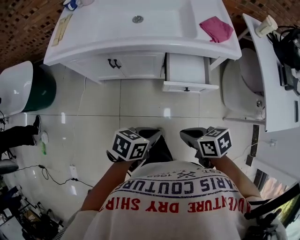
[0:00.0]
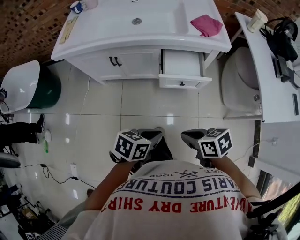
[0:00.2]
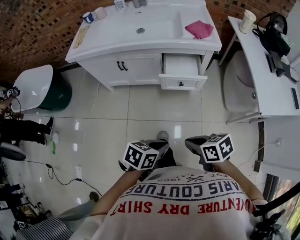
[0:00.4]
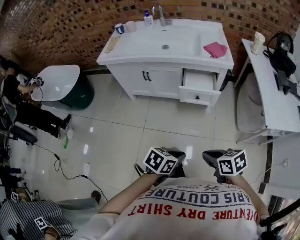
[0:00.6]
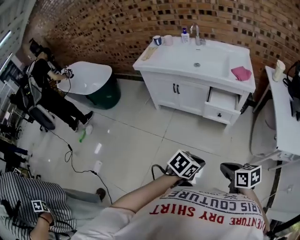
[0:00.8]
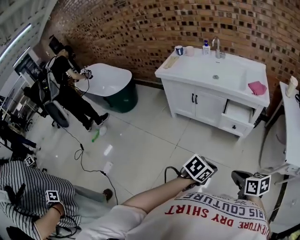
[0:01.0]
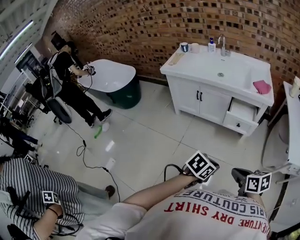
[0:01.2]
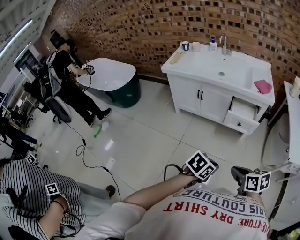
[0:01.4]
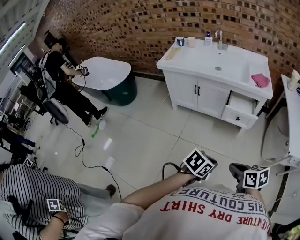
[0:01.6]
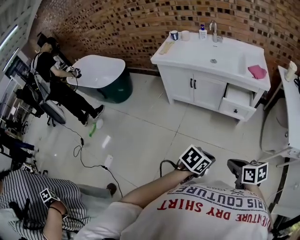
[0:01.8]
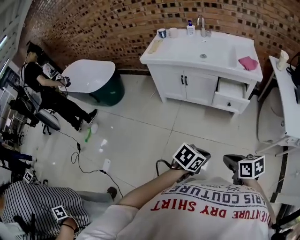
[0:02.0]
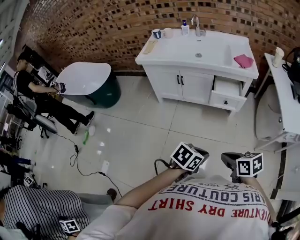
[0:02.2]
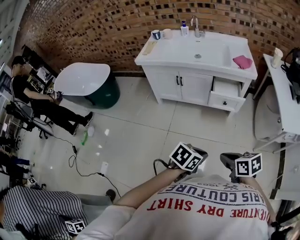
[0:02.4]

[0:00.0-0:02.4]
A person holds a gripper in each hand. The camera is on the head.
0:00.0 to 0:01.2: The right gripper changes place by about 30 cm, while the left gripper moves roughly 30 cm.
0:01.2 to 0:02.4: The right gripper ends up some 5 cm from where it was, while the left gripper ends up some 5 cm from where it was.

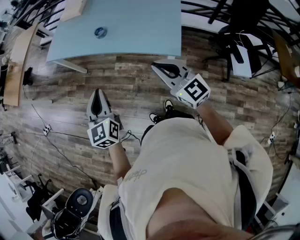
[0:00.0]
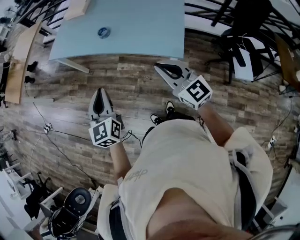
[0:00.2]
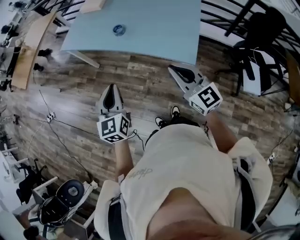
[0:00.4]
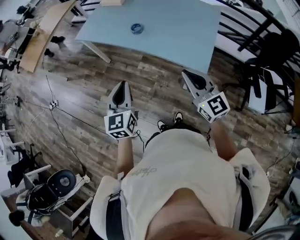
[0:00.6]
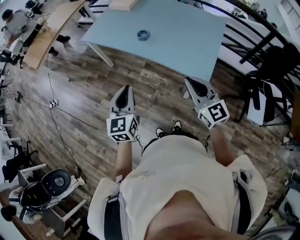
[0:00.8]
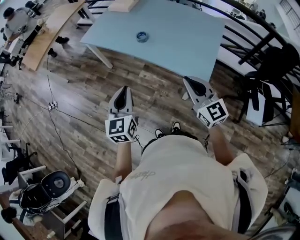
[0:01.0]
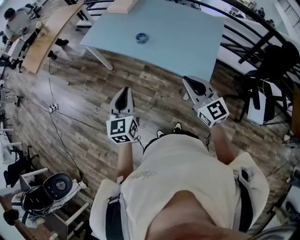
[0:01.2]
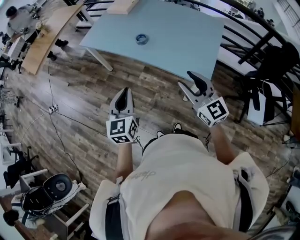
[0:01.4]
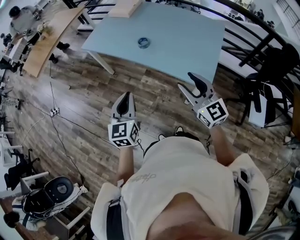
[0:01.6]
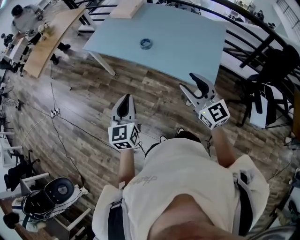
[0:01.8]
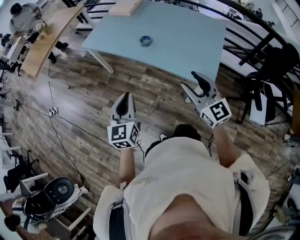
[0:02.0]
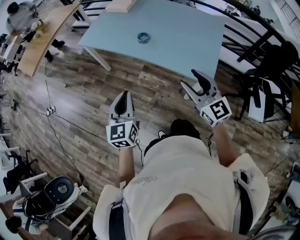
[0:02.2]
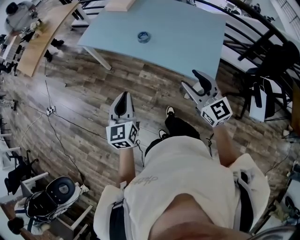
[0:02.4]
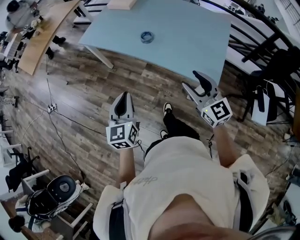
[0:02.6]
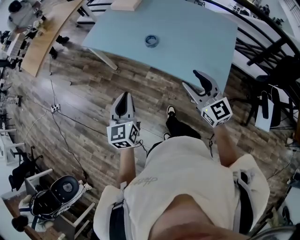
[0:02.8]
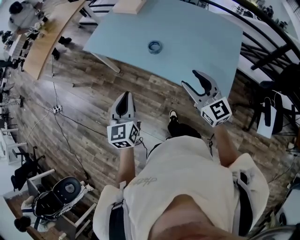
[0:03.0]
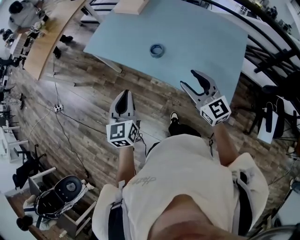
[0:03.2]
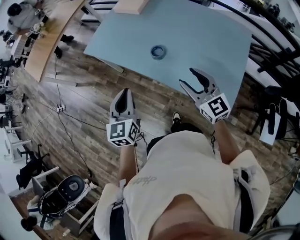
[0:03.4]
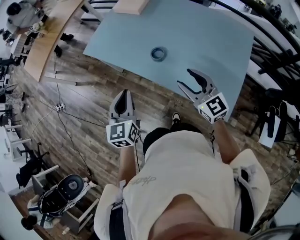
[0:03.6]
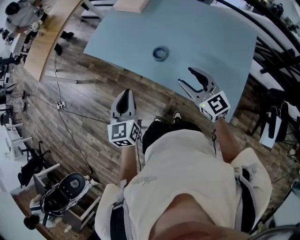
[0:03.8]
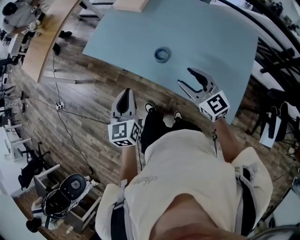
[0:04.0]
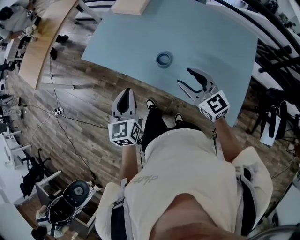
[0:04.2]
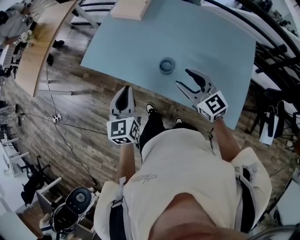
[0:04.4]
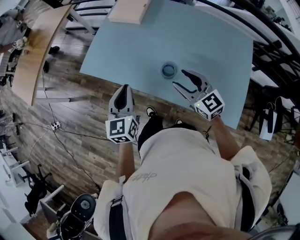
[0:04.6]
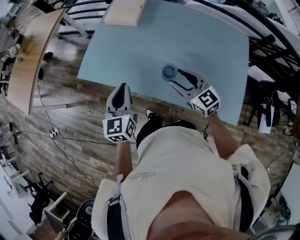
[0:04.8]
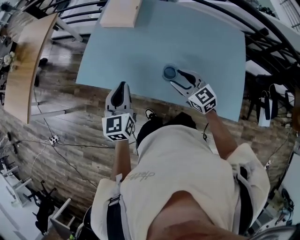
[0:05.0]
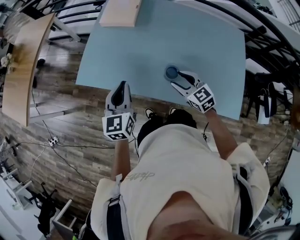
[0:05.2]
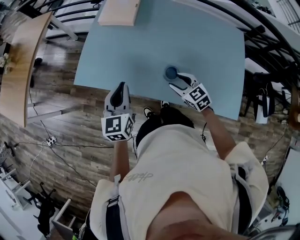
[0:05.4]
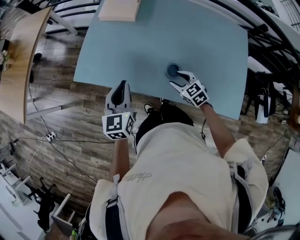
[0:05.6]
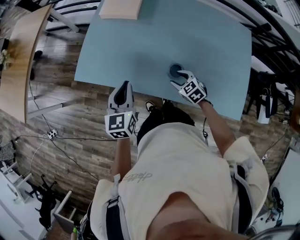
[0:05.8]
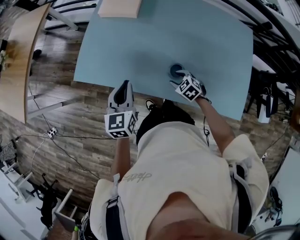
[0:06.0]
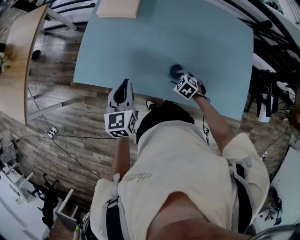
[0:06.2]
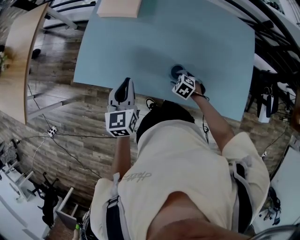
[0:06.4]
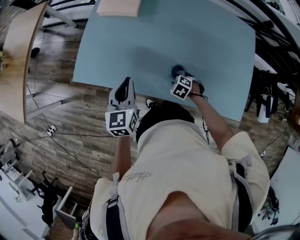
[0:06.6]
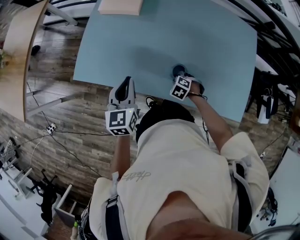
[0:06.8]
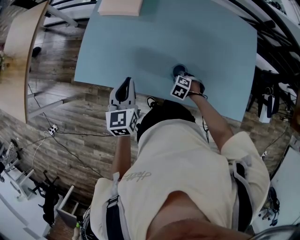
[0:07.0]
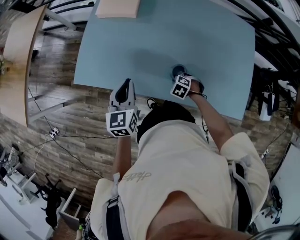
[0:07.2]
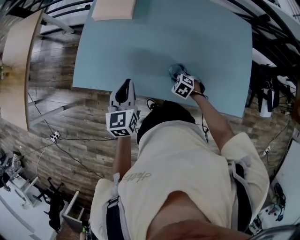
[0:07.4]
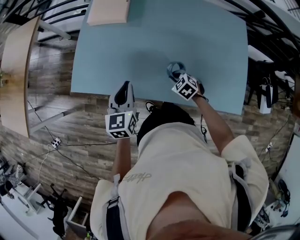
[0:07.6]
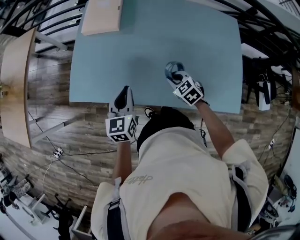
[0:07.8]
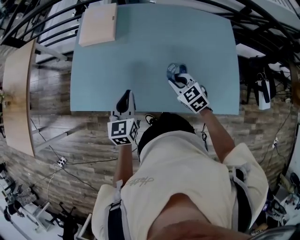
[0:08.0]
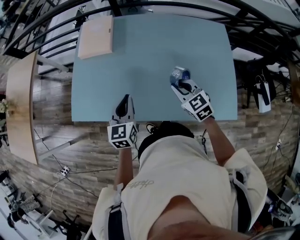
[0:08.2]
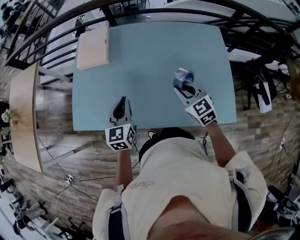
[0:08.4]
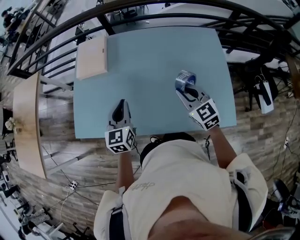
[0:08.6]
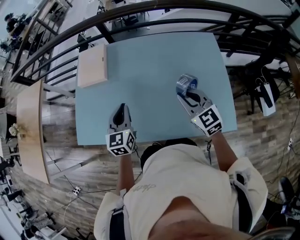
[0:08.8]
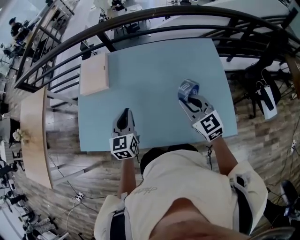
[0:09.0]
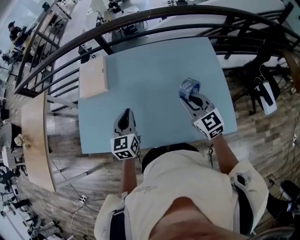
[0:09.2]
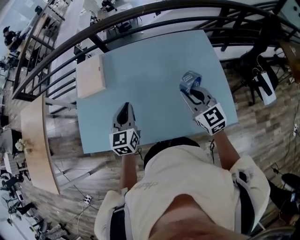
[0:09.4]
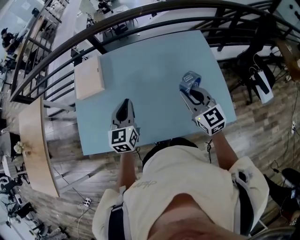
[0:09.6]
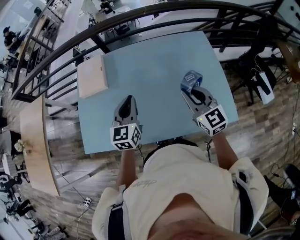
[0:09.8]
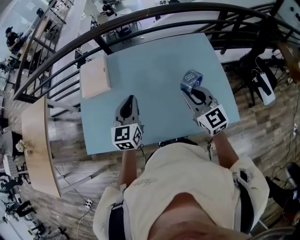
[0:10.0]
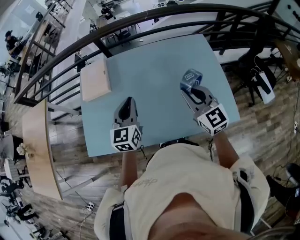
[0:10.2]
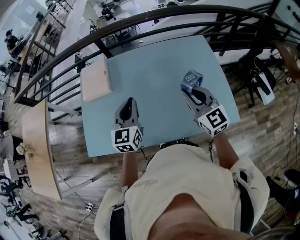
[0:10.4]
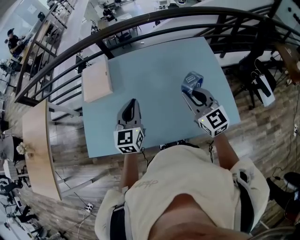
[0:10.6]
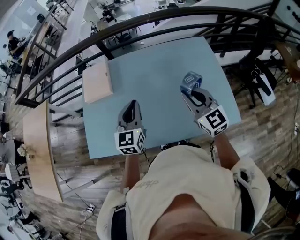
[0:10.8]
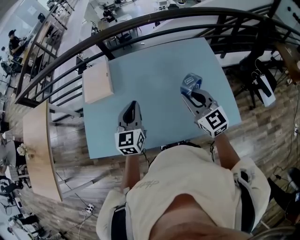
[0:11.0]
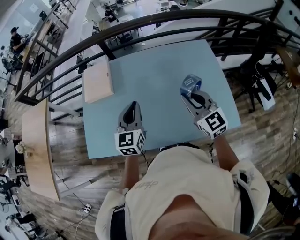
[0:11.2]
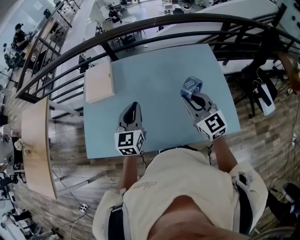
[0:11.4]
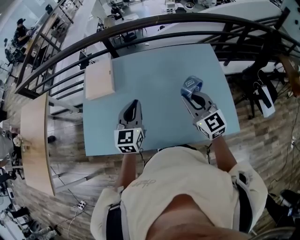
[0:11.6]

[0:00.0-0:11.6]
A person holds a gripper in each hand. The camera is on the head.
0:00.0 to 0:01.4: The right gripper opens its fingers.
0:01.4 to 0:02.8: Both grippers travel together forward, some 10 cm.
0:02.8 to 0:04.4: Both grippers travel together forward, about 30 cm.
0:04.4 to 0:05.8: The left gripper heads forward and downward, covering about 15 cm, while the right gripper is displaced downward and forward by about 25 cm, and tilts its fingers some 40 degrees downward.
0:05.8 to 0:07.2: The right gripper heads downward, covering approximately 10 cm, changes its angle by roughly 30 degrees, and closes its fingers.
0:07.2 to 0:08.8: The left gripper changes place by some 20 cm; the right gripper moves upward, approximately 35 cm, and tips its fingers upward by roughly 60 degrees.
0:08.8 to 0:10.2: Both grippers move upward, about 5 cm.
0:10.2 to 0:11.6: There are only small adjustments of the grippers.

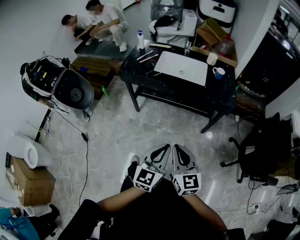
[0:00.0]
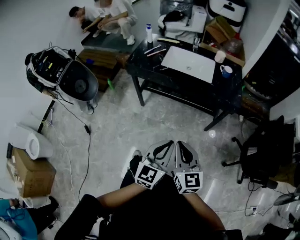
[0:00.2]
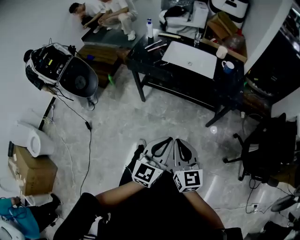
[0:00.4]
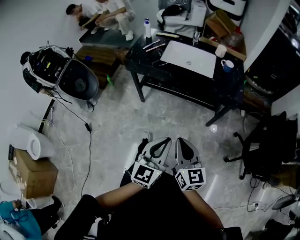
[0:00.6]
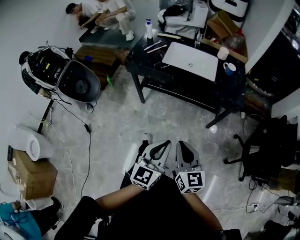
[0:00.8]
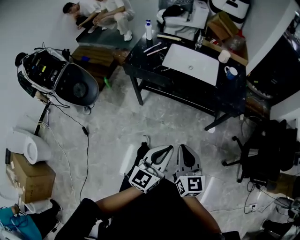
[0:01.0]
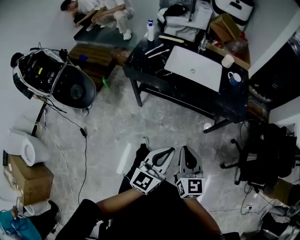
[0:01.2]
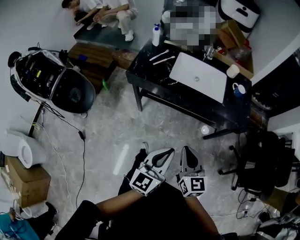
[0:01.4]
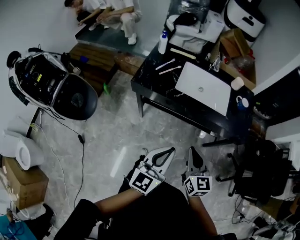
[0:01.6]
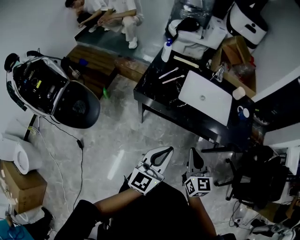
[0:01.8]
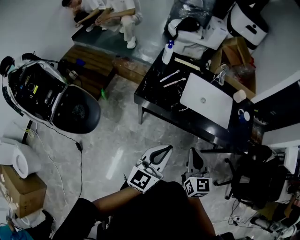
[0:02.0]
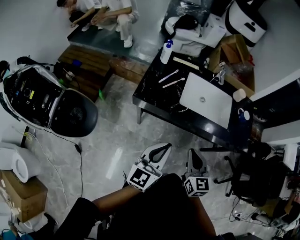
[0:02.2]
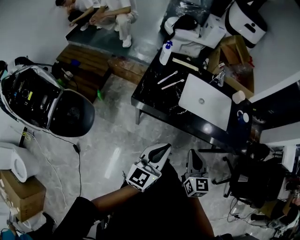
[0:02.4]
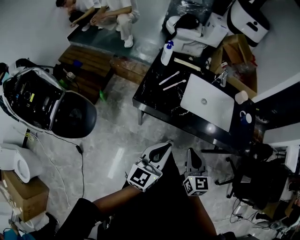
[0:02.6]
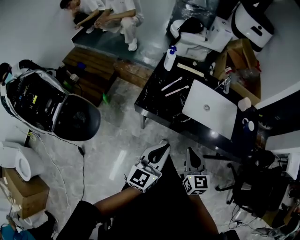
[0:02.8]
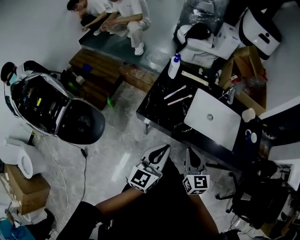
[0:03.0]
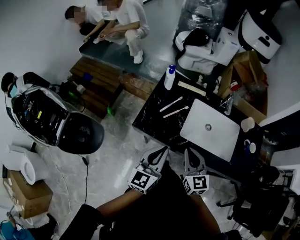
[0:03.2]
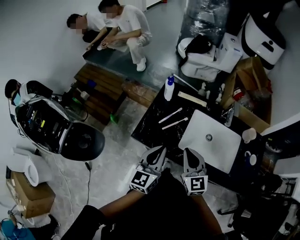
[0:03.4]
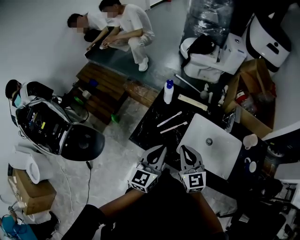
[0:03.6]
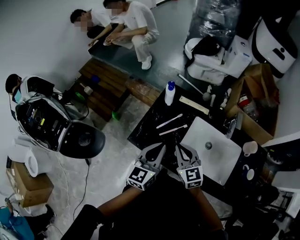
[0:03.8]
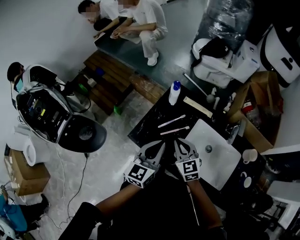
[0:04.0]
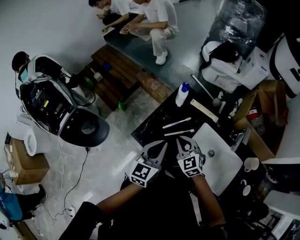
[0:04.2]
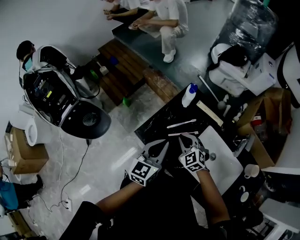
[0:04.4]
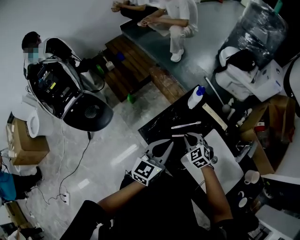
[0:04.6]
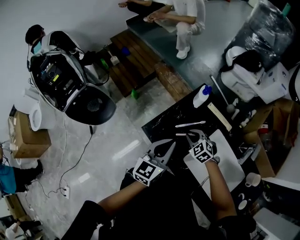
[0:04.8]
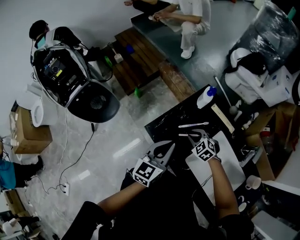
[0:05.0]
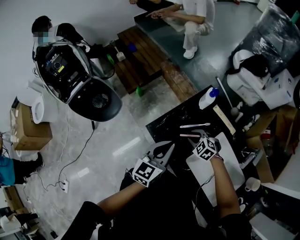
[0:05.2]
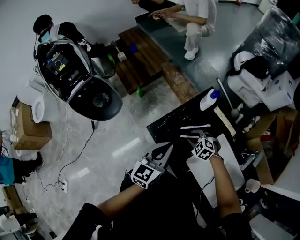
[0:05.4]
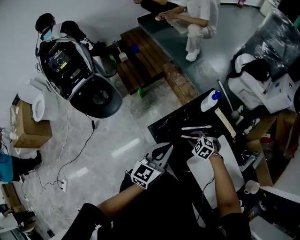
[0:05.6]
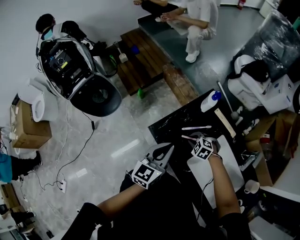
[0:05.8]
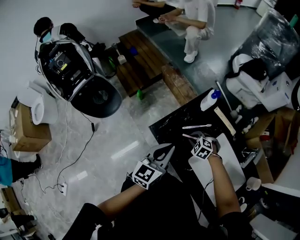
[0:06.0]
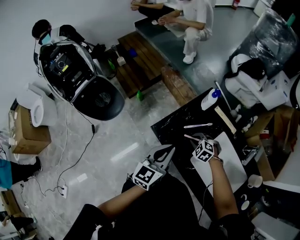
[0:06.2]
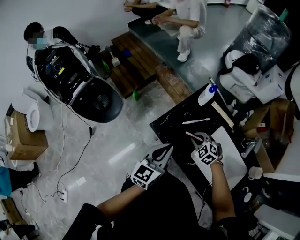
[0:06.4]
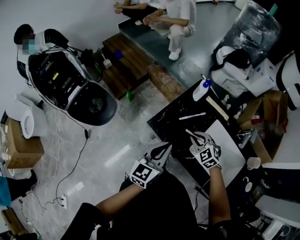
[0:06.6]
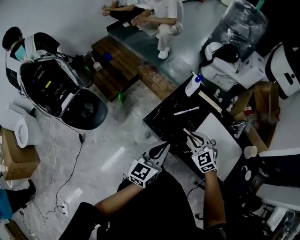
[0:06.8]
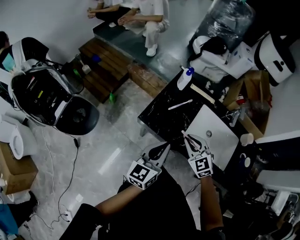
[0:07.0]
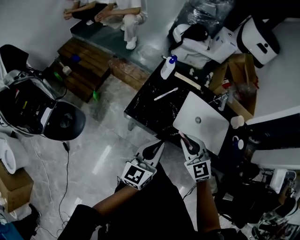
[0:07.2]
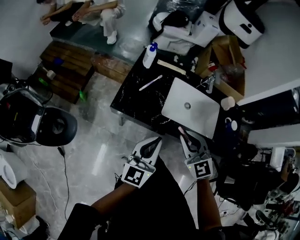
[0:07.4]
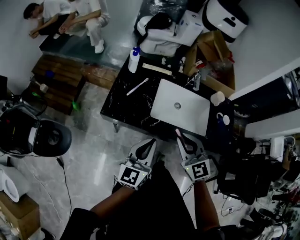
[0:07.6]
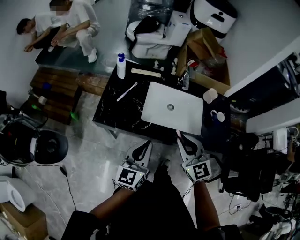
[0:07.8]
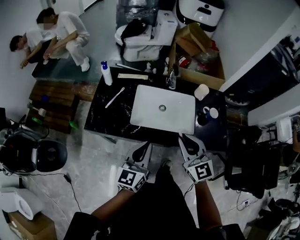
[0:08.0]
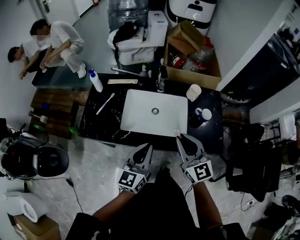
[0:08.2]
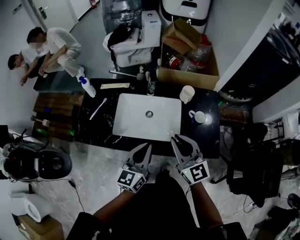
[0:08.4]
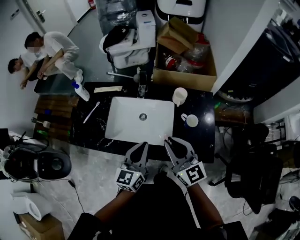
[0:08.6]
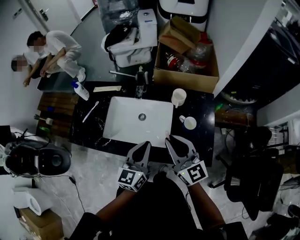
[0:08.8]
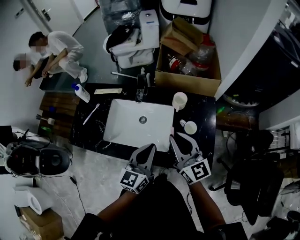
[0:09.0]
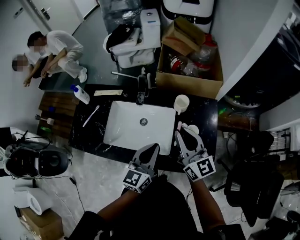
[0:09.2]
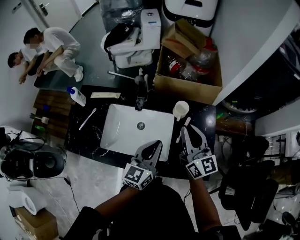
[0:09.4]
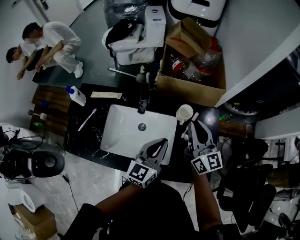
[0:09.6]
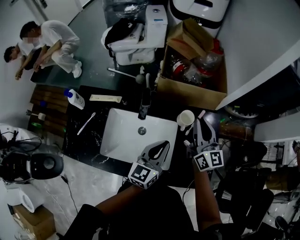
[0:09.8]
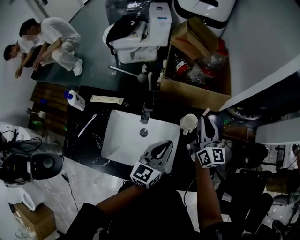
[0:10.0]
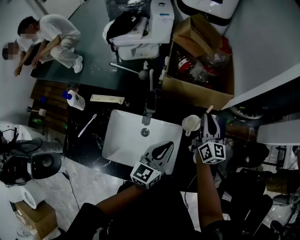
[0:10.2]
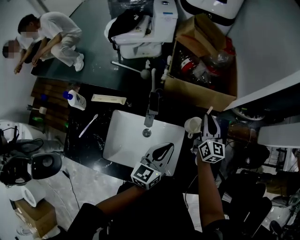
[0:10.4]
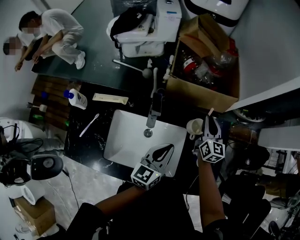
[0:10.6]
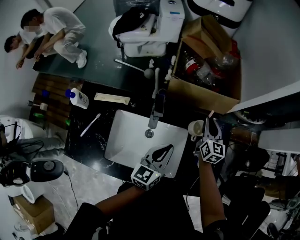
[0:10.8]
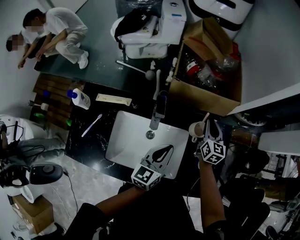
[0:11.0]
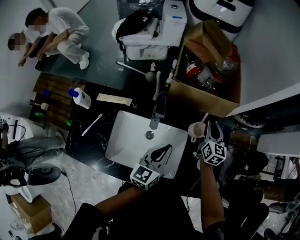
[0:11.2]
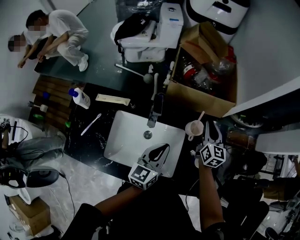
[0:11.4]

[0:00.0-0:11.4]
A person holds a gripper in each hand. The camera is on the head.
0:00.0 to 0:01.4: Both grippers move forward and to the left, about 20 cm.
0:01.4 to 0:02.8: The two grippers go about 25 cm forward and to the left.
0:02.8 to 0:04.2: The right gripper ends up some 30 cm from where it was, and swivels approximately 50 degrees. The left gripper shifts by roughly 25 cm, and swivels approximately 20 degrees.
0:04.2 to 0:05.6: The right gripper moves downward, some 15 cm, points its fingers about 30 degrees further downward, and opens up. Meanwhile the left gripper moves some 5 cm.
0:05.6 to 0:07.2: The left gripper ends up about 15 cm from where it was, and swivels roughly 30 degrees. Meanwhile the right gripper heads upward, covering approximately 25 cm, and angles its fingers upward, by about 40 degrees.
0:07.2 to 0:08.6: Both grippers move to the right, about 40 cm. The right gripper changes its angle by approximately 40 degrees.
0:08.6 to 0:10.0: The left gripper heads forward and to the right, covering about 20 cm. The right gripper travels forward and to the right by some 30 cm, and rotates roughly 20 degrees.
0:10.0 to 0:11.4: The right gripper moves downward, approximately 5 cm.
